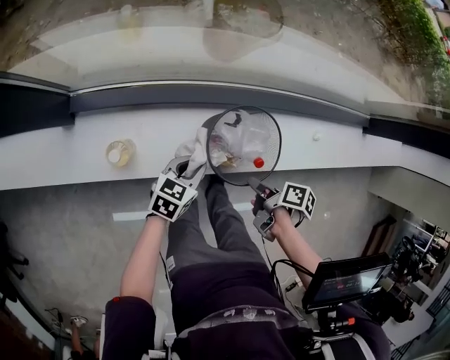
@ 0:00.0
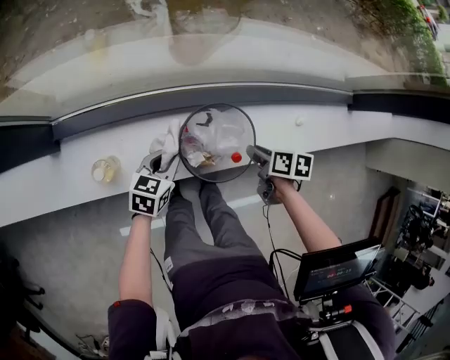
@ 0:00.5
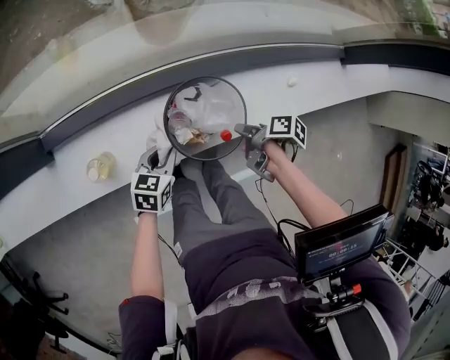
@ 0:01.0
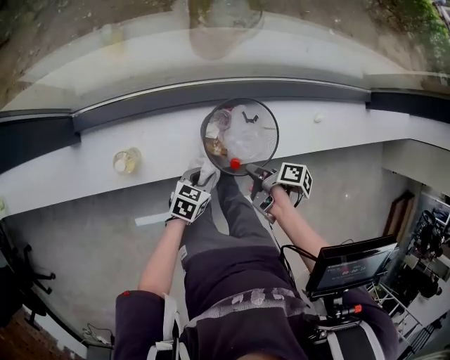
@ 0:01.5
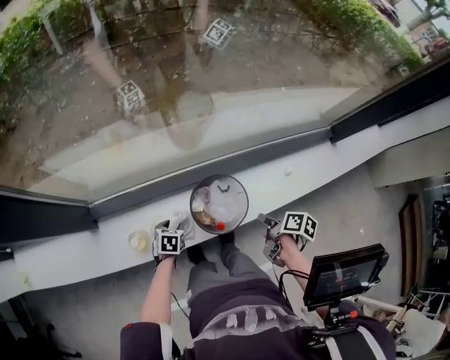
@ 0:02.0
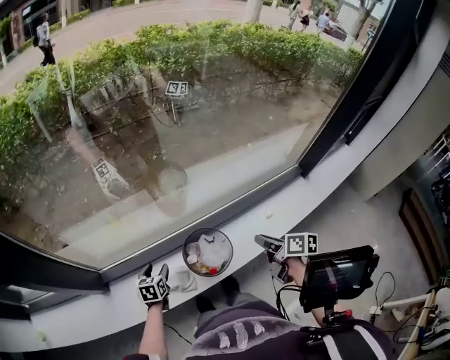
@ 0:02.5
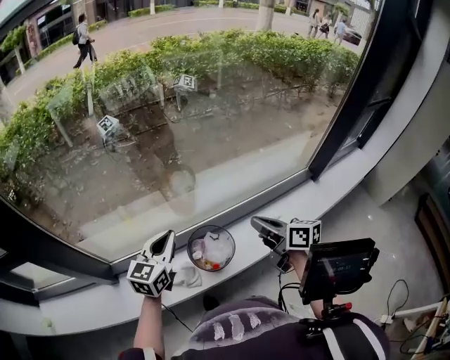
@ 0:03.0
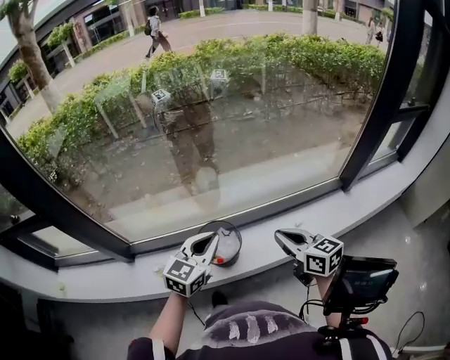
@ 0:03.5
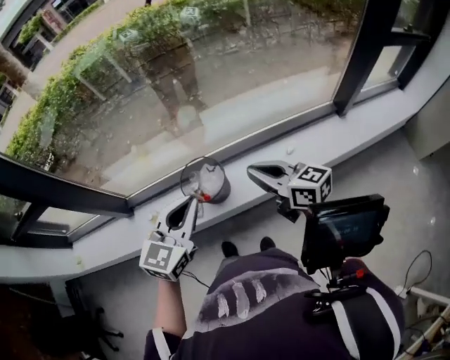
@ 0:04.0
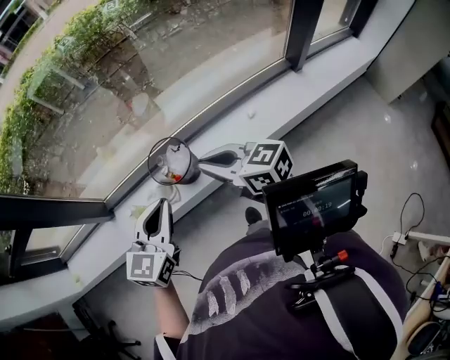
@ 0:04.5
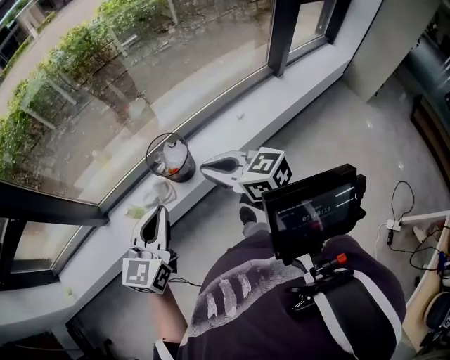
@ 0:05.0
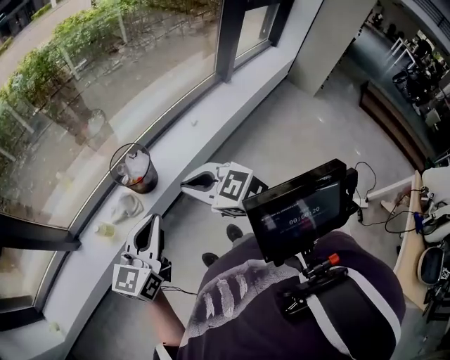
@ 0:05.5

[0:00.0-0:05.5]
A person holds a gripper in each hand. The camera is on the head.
0:00.0 to 0:02.0: The right gripper goes approximately 10 cm upward and to the right; the left gripper heads to the left and downward, covering roughly 10 cm, and rotates some 30 degrees.
0:02.0 to 0:03.5: The left gripper shifts about 50 cm upward and to the right, angles its fingers upward, by some 50 degrees, and closes up, while the right gripper is displaced upward by some 25 cm, tilts its fingers some 40 degrees upward, and closes.
0:03.5 to 0:05.5: The left gripper travels backward by about 30 cm, and rotates some 20 degrees. The right gripper is displaced backward and to the left by some 30 cm, and changes its angle by approximately 30 degrees.

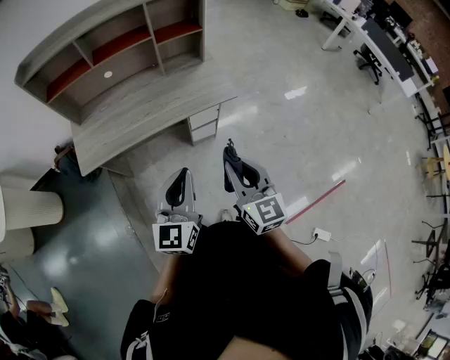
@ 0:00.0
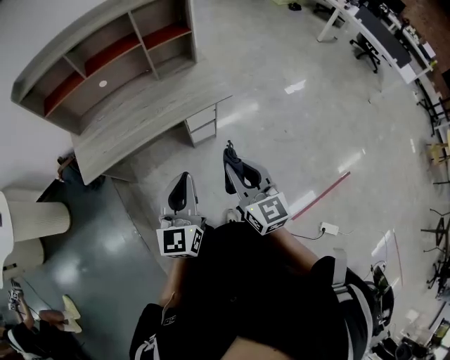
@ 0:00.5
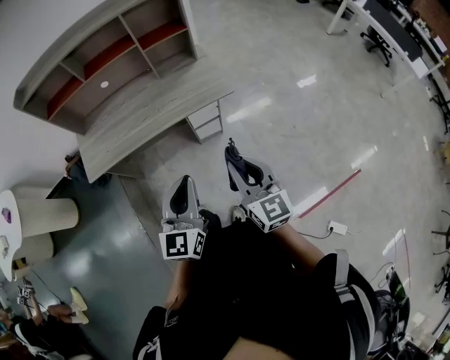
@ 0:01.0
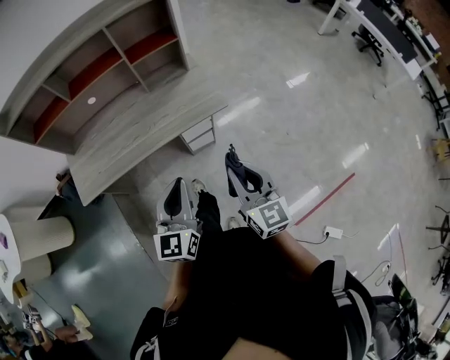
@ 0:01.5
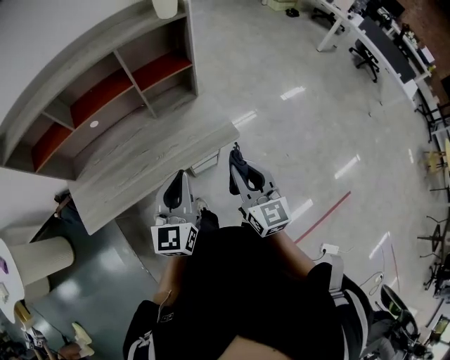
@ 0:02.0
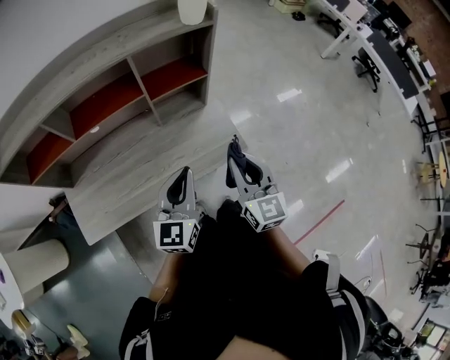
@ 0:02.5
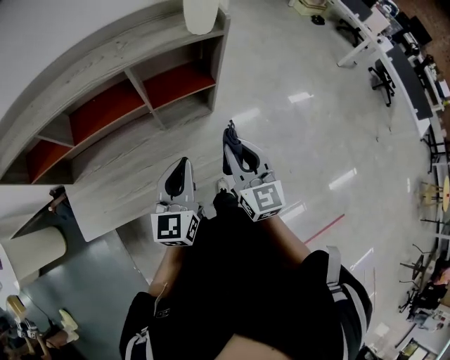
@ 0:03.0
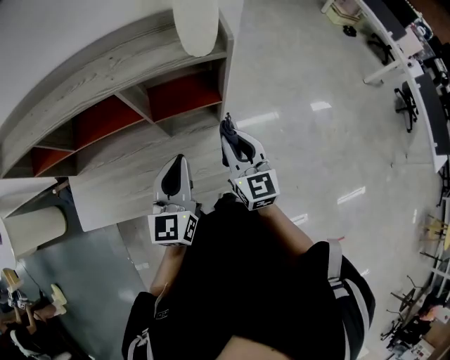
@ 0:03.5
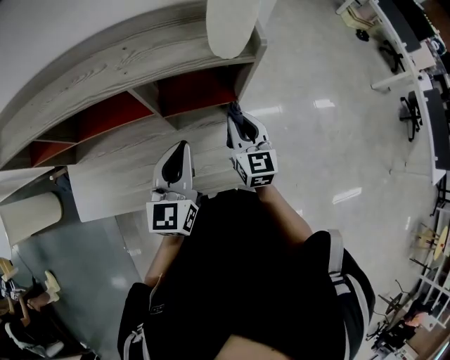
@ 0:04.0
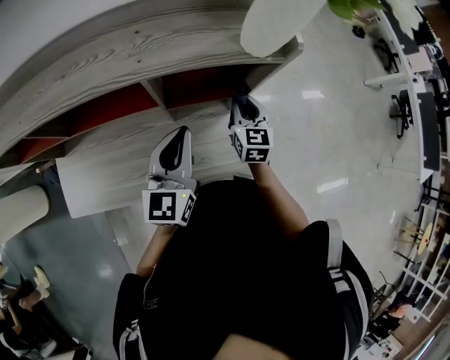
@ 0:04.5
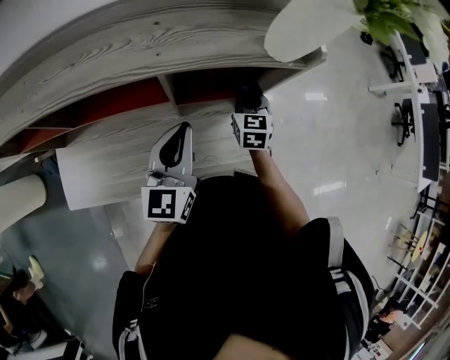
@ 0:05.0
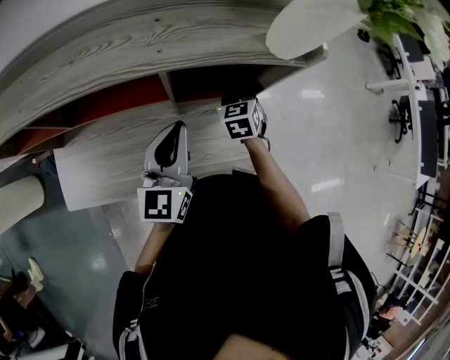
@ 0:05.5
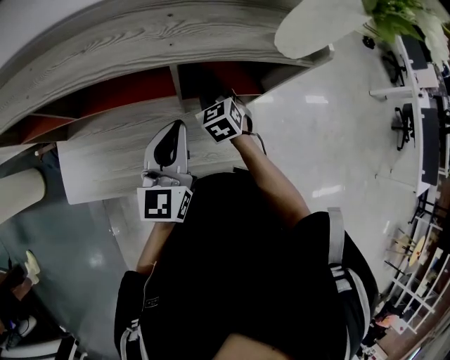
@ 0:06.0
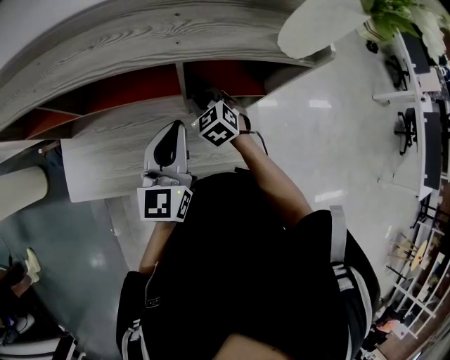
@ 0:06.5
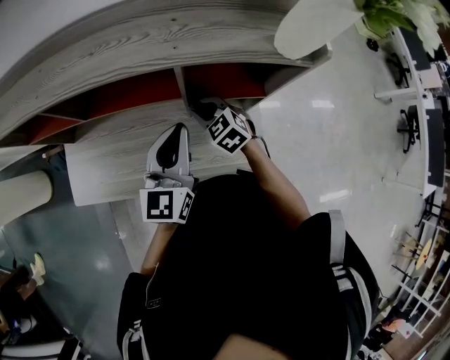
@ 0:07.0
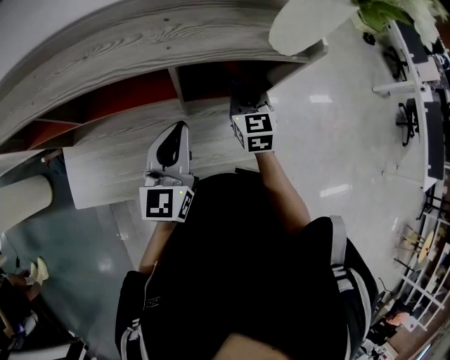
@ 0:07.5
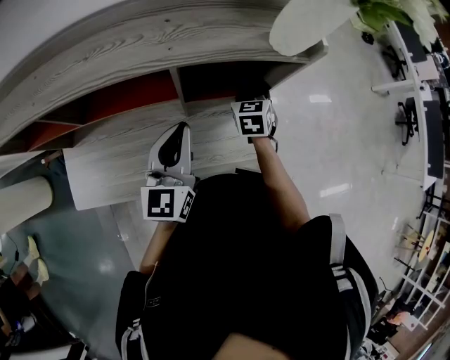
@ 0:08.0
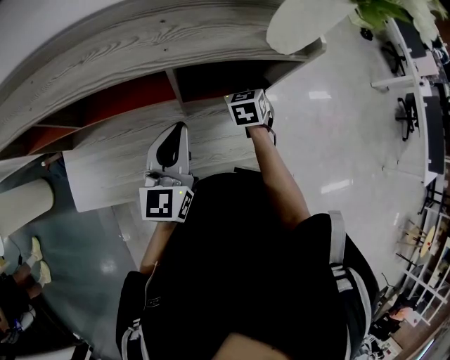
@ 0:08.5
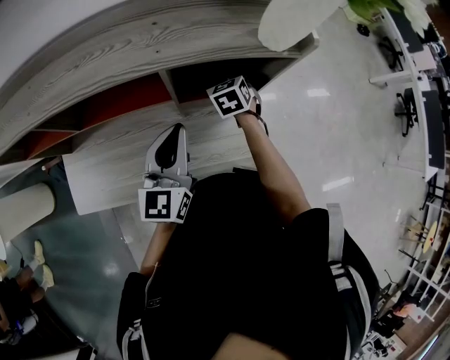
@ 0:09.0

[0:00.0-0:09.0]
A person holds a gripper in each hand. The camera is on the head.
0:00.0 to 0:02.0: The grippers both shift forward by approximately 25 cm.
0:02.0 to 0:04.5: Both grippers travel together forward, approximately 40 cm.
0:04.5 to 0:07.0: The right gripper heads to the left, covering roughly 20 cm, and swivels approximately 50 degrees; the left gripper travels to the left by approximately 5 cm.
0:07.0 to 0:09.0: The right gripper ends up about 15 cm from where it was, and rotates about 30 degrees.

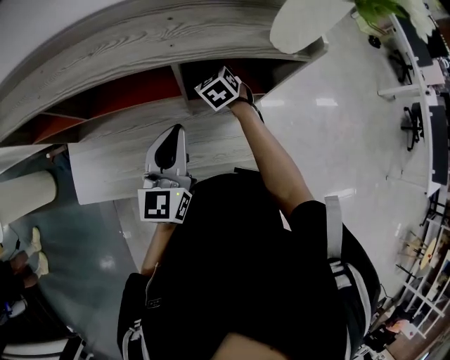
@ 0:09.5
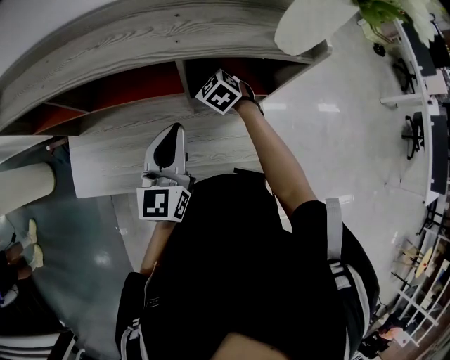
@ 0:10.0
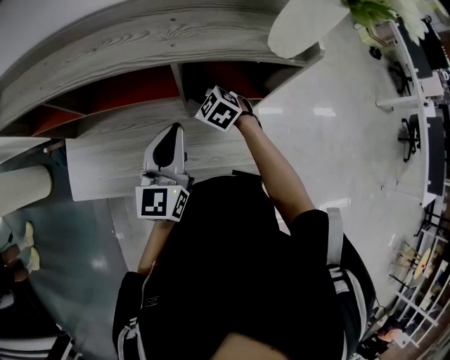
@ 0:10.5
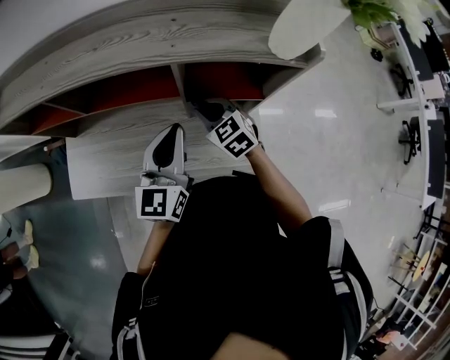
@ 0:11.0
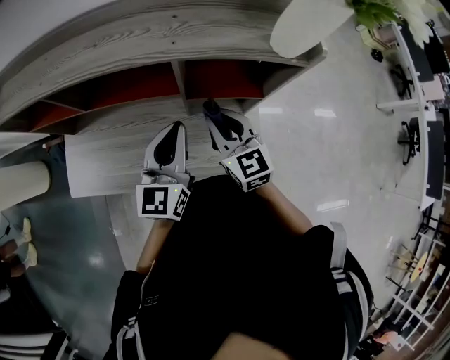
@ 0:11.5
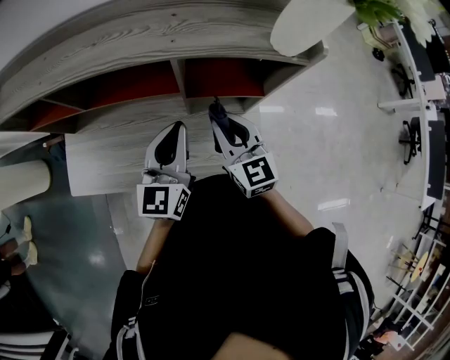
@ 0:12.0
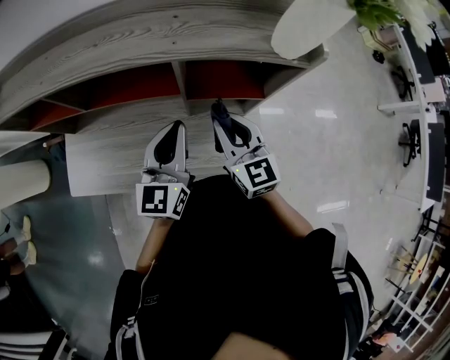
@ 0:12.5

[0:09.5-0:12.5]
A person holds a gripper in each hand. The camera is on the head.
0:09.5 to 0:11.0: The right gripper shifts roughly 10 cm backward.
0:11.0 to 0:12.5: The right gripper travels upward and backward by some 10 cm, and rotates some 30 degrees.

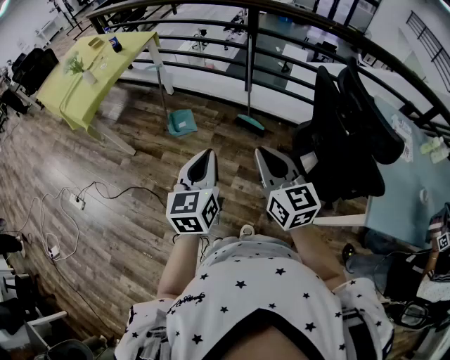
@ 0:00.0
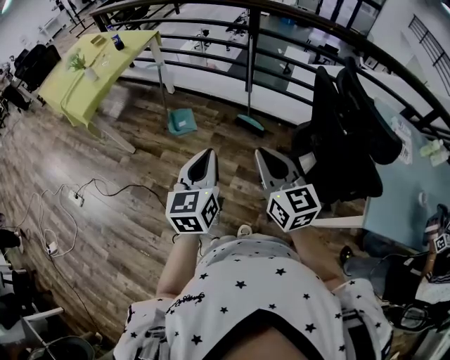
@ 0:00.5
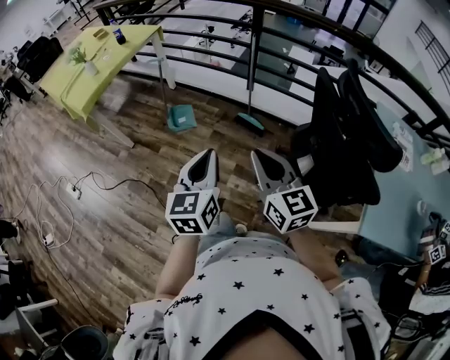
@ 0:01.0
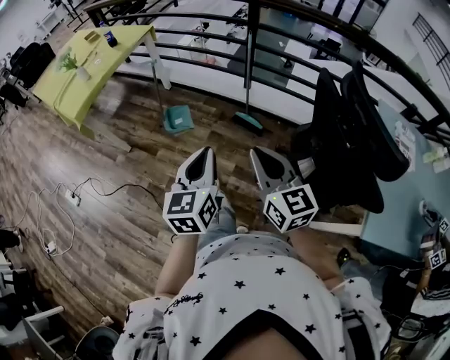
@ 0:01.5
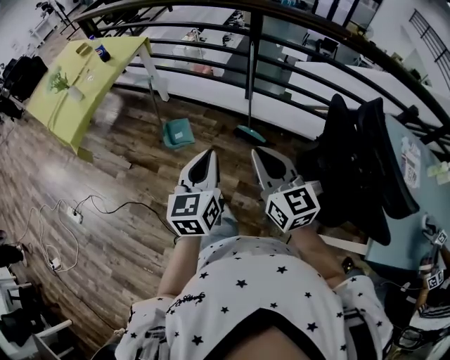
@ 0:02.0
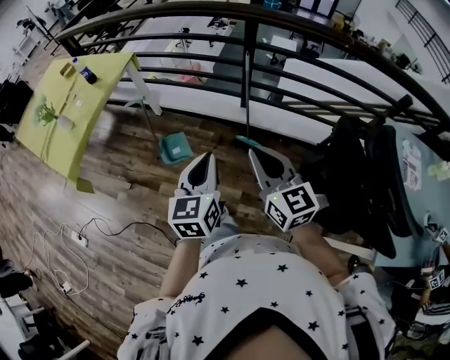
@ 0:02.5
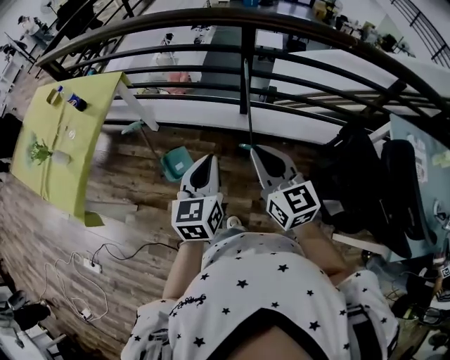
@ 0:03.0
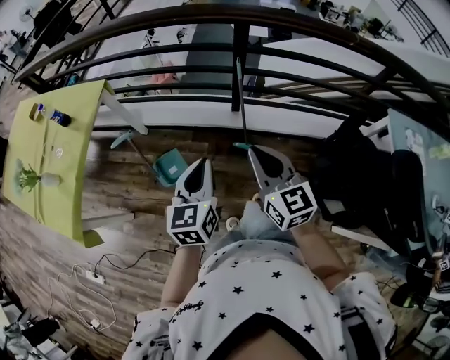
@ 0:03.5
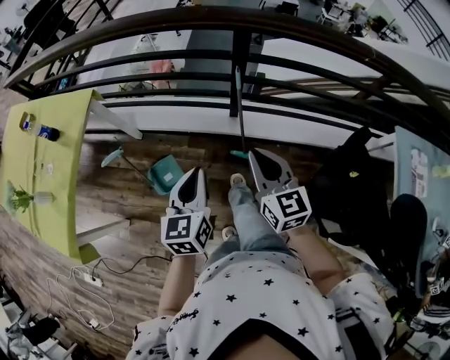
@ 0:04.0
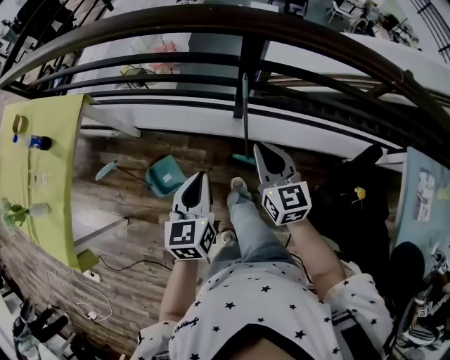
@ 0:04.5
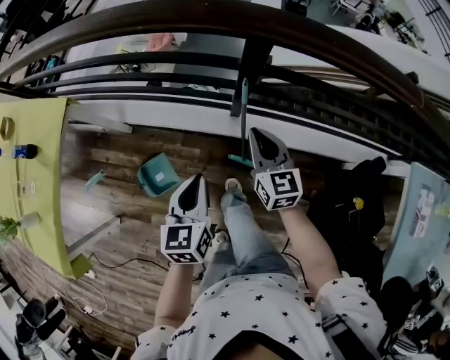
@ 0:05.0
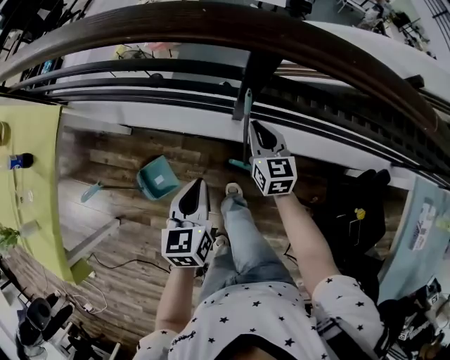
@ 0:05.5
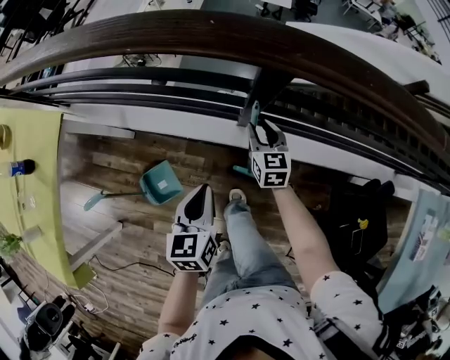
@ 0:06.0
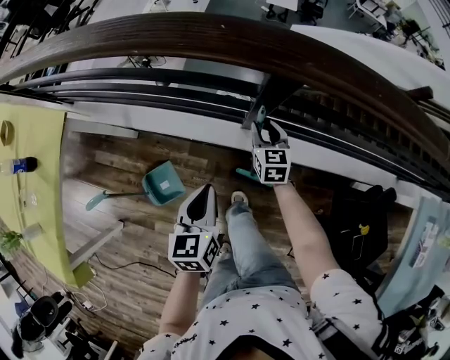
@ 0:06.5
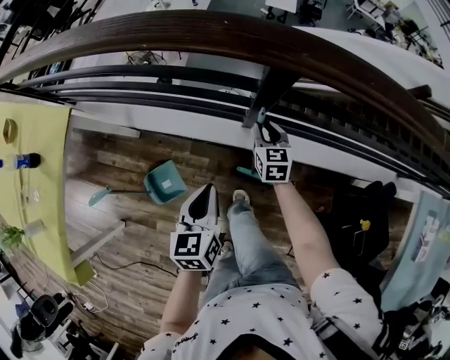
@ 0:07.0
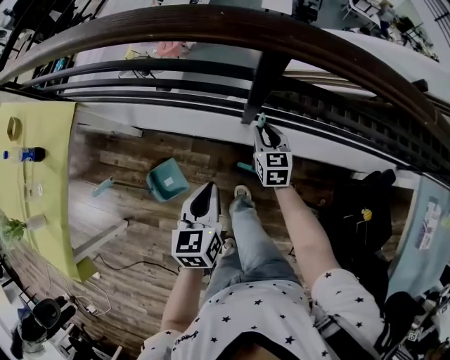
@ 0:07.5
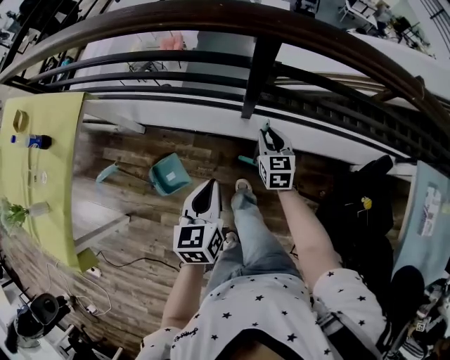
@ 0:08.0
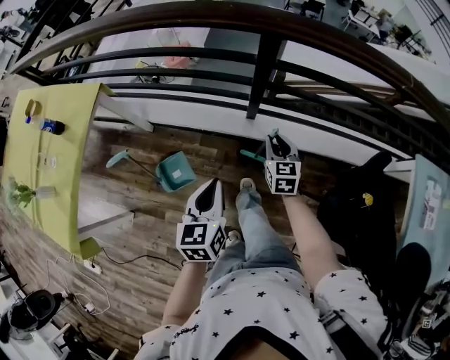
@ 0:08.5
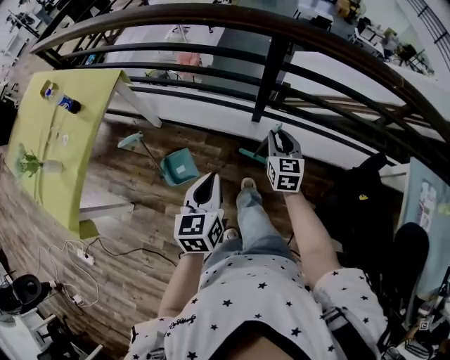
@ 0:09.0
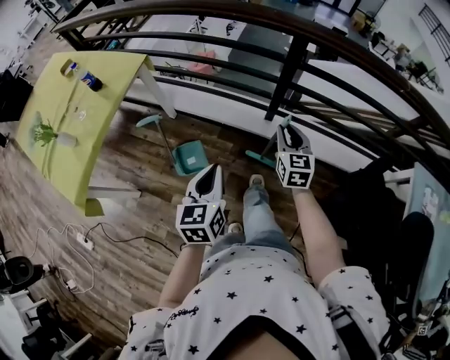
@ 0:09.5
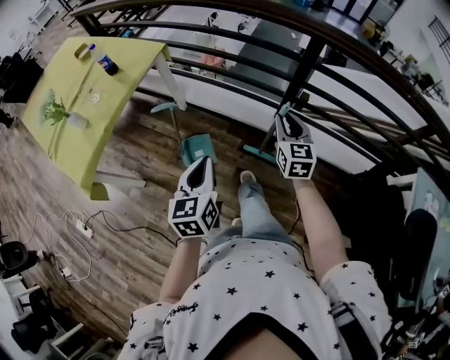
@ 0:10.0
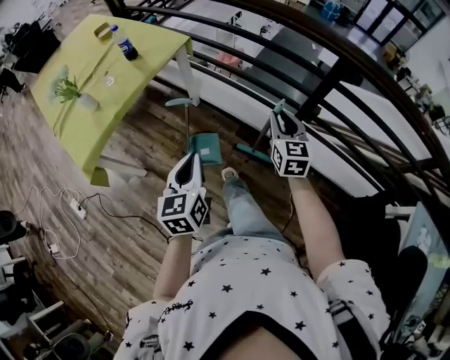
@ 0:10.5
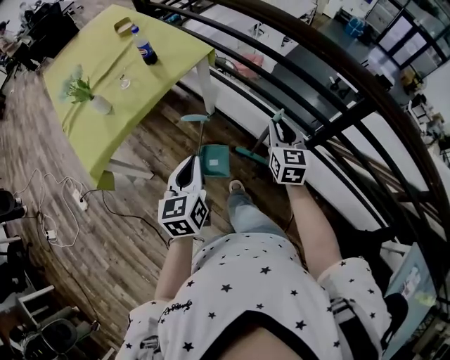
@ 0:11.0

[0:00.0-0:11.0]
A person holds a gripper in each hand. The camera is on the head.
0:00.0 to 0:02.0: Both grippers move forward, roughly 15 cm.
0:02.0 to 0:03.5: The two grippers go some 30 cm forward.
0:03.5 to 0:05.5: Both grippers travel together forward and downward, approximately 40 cm.
0:07.5 to 0:09.0: Both grippers travel together backward and upward, some 25 cm.
0:09.0 to 0:11.0: The right gripper changes place by approximately 30 cm, and rotates approximately 30 degrees, while the left gripper ends up some 30 cm from where it was, and swivels approximately 30 degrees.
